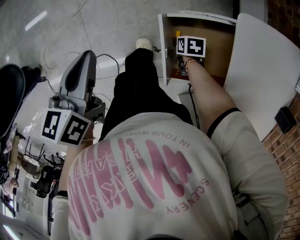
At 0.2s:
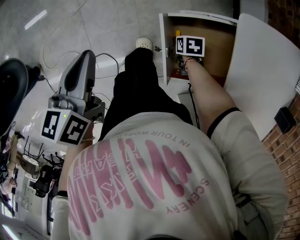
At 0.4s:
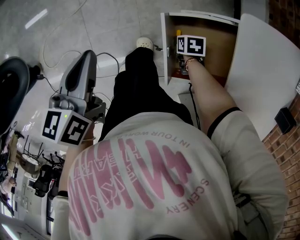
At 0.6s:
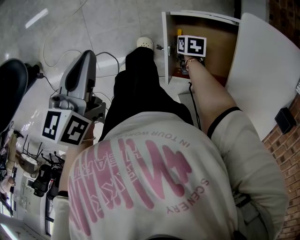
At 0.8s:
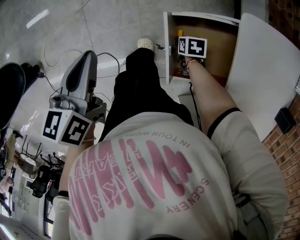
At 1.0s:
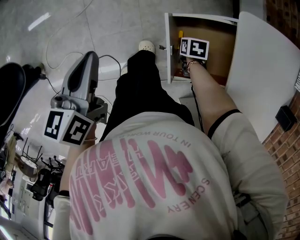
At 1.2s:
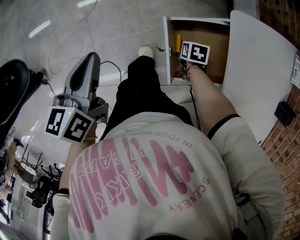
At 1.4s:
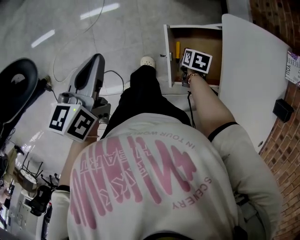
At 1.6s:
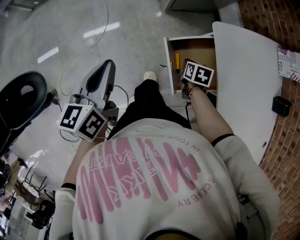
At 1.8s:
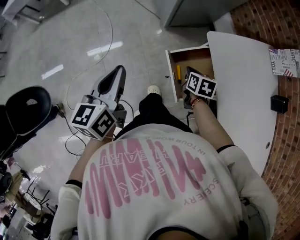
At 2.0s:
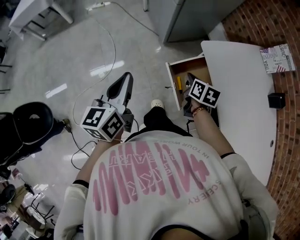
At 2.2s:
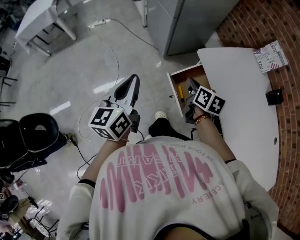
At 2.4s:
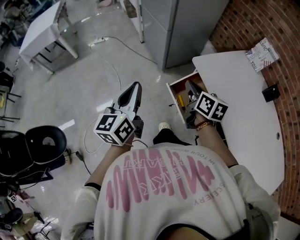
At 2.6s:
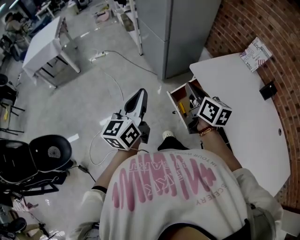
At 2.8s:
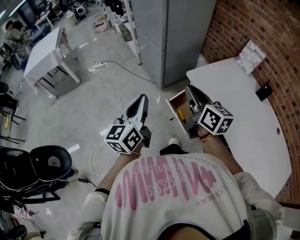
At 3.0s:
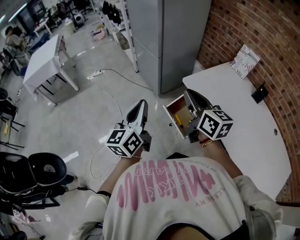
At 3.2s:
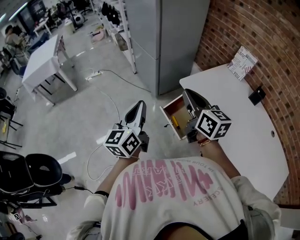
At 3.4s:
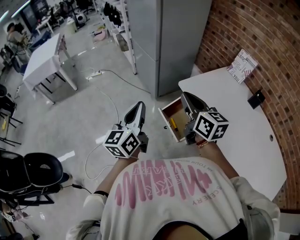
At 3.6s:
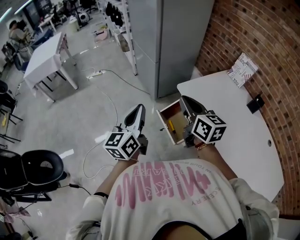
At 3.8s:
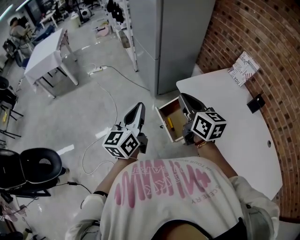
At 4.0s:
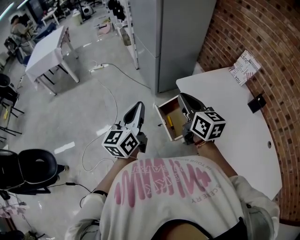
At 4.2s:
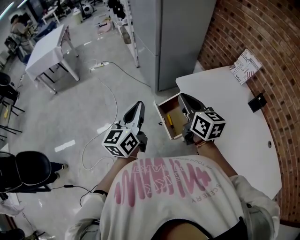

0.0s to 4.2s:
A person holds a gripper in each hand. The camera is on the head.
0.0s to 1.4s: Both grippers travel together upward, approximately 10 cm.
1.4s to 2.8s: The right gripper heads upward, covering approximately 50 cm, and points its fingers some 70 degrees further upward. The left gripper heads upward, covering roughly 20 cm, and changes its angle by approximately 30 degrees.
2.8s to 4.2s: The grippers both shift to the right by approximately 5 cm.

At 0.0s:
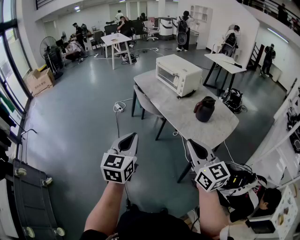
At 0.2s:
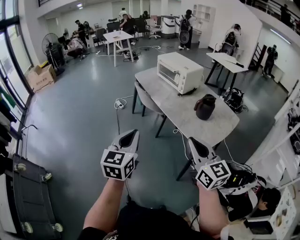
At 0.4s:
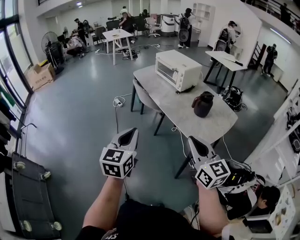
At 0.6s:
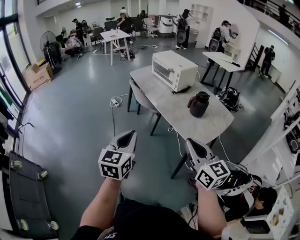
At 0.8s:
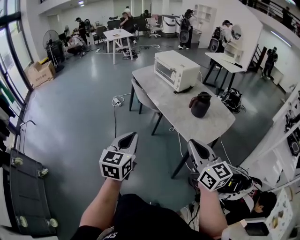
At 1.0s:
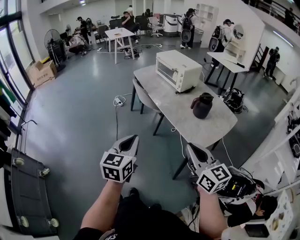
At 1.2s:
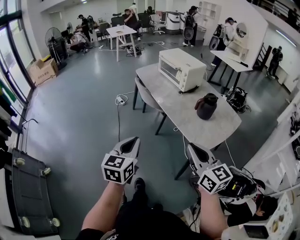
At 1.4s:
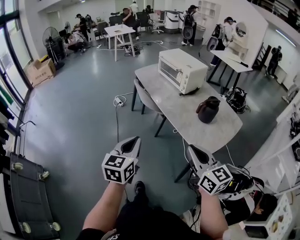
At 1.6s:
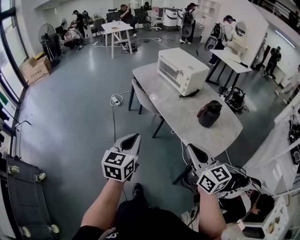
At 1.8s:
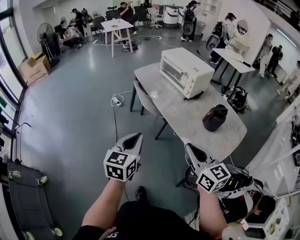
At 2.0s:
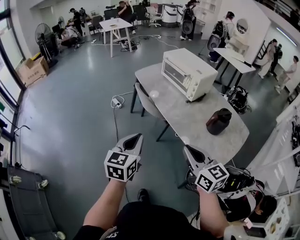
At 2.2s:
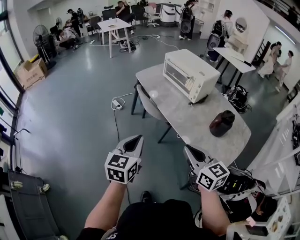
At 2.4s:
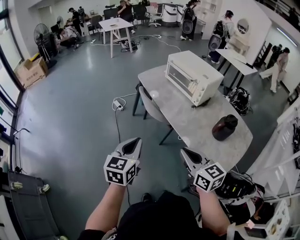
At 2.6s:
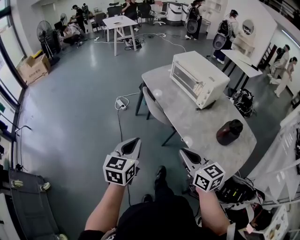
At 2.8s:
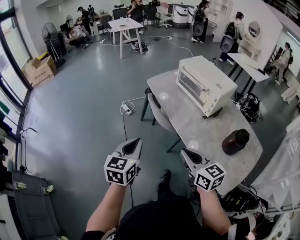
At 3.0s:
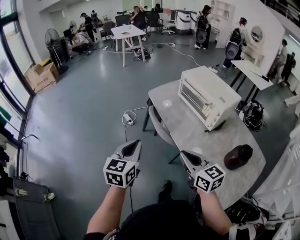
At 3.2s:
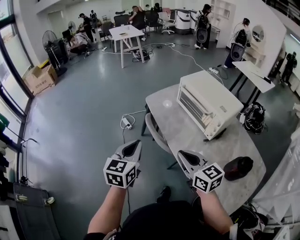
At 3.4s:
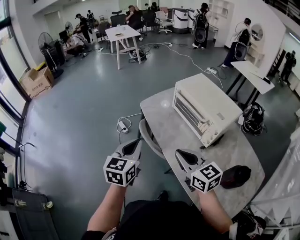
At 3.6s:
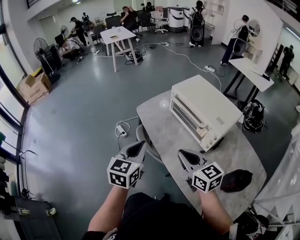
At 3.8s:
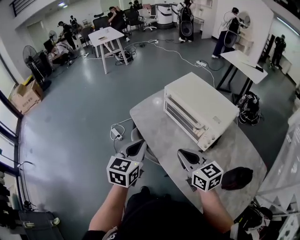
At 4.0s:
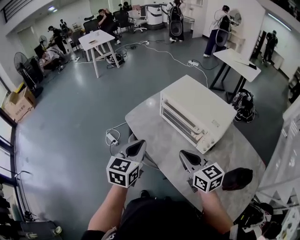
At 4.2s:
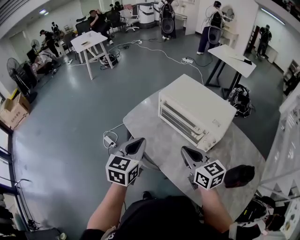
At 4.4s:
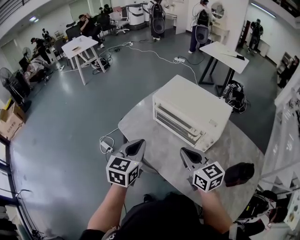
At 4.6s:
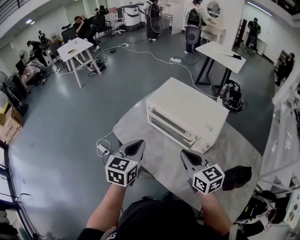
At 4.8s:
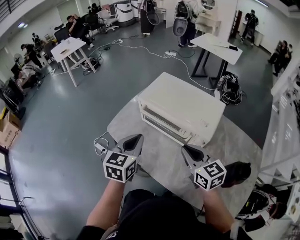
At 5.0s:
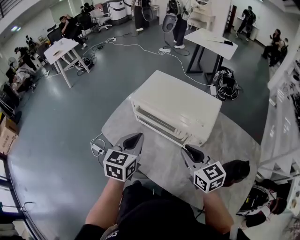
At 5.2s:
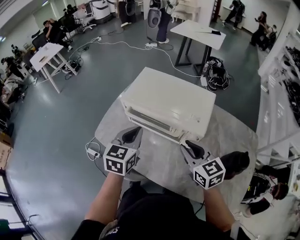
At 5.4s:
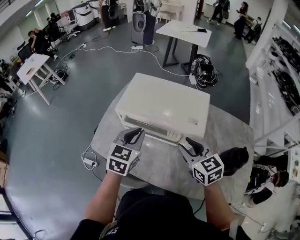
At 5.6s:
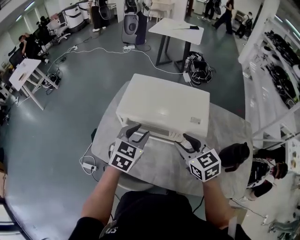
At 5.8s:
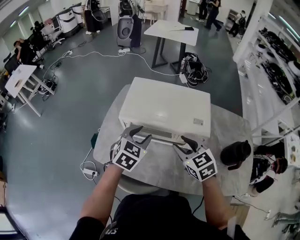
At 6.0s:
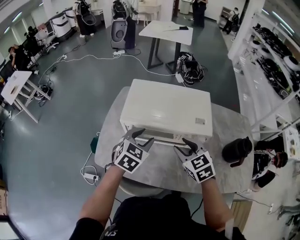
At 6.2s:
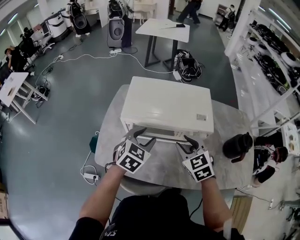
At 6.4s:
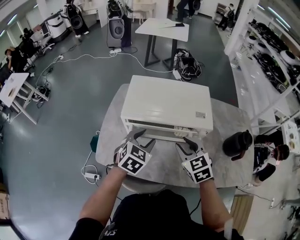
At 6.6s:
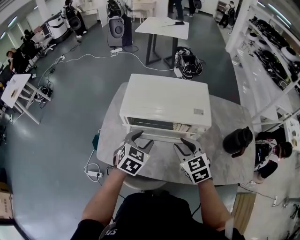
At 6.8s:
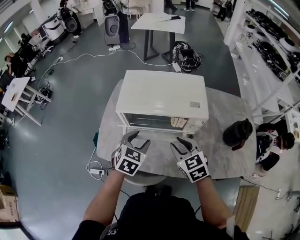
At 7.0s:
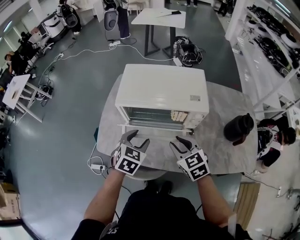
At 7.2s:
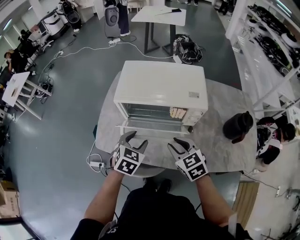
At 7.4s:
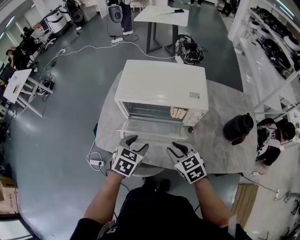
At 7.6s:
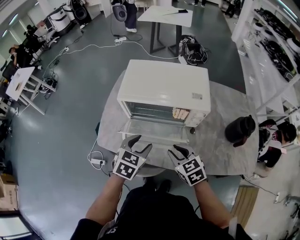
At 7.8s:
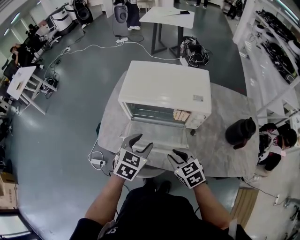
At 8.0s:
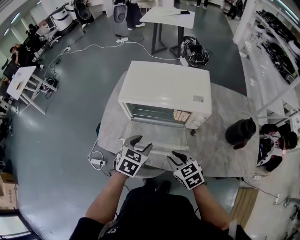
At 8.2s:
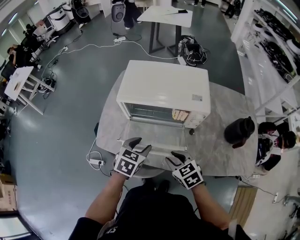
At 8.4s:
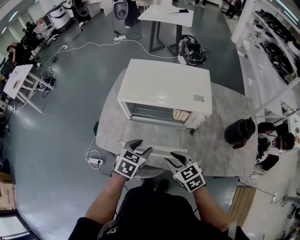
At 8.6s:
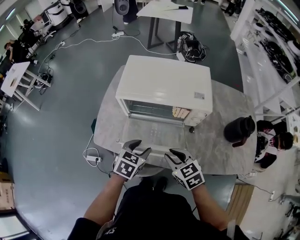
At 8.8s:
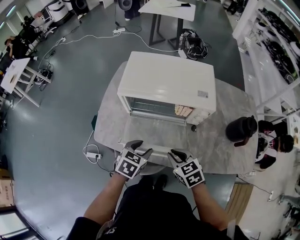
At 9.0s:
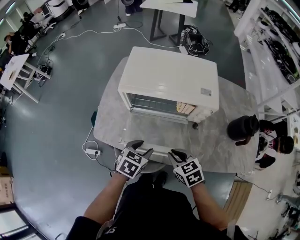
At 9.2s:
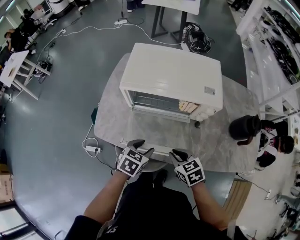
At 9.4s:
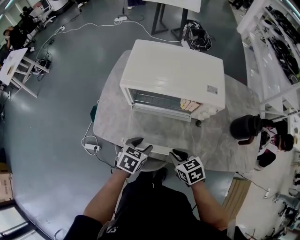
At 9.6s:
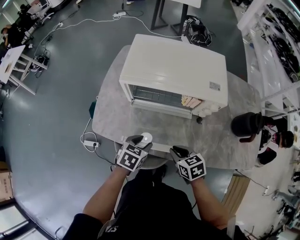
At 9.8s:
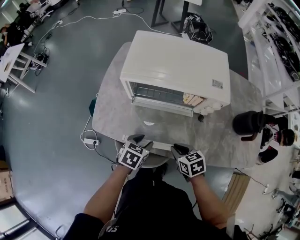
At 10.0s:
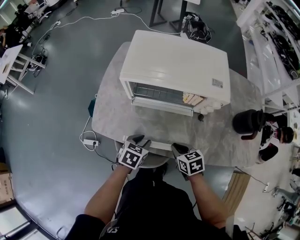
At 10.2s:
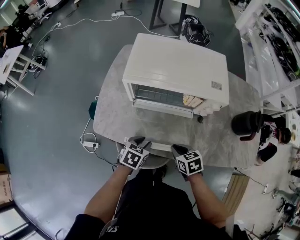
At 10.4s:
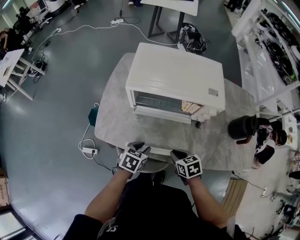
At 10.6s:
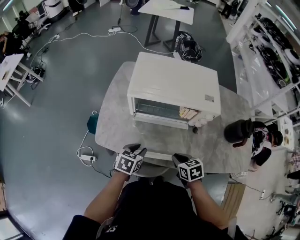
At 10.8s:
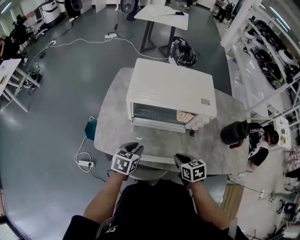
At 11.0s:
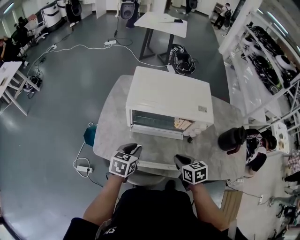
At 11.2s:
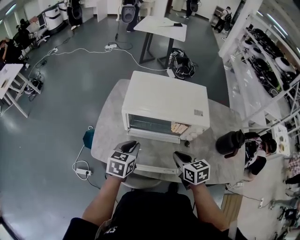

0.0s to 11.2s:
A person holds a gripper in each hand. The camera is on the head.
0.0s to 1.6s: The right gripper goes some 10 cm forward. The left gripper goes about 10 cm forward and downward.
1.6s to 3.2s: Both grippers move forward, some 40 cm.
3.2s to 4.8s: The right gripper ends up some 25 cm from where it was, and changes its angle by roughly 30 degrees, while the left gripper changes place by approximately 30 cm, and turns by approximately 30 degrees.
4.8s to 6.4s: The right gripper shifts by about 10 cm, turns by roughly 40 degrees, and opens its fingers, while the left gripper moves some 15 cm, changes its angle by roughly 50 degrees, and opens its fingers.
6.4s to 8.0s: The right gripper heads backward and downward, covering approximately 15 cm. Meanwhile the left gripper heads backward, covering about 10 cm.
8.0s to 9.6s: Both grippers move downward, roughly 10 cm.
9.6s to 11.2s: The two grippers go roughly 15 cm upward and forward. The left gripper changes its angle by about 20 degrees, and closes up.

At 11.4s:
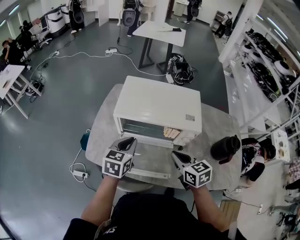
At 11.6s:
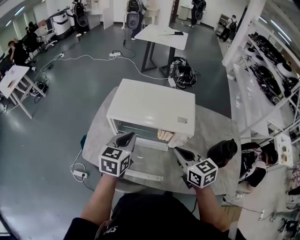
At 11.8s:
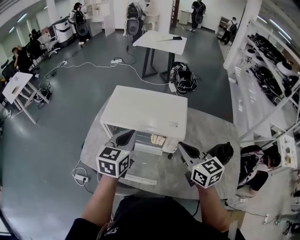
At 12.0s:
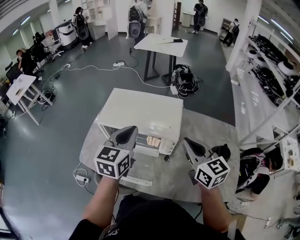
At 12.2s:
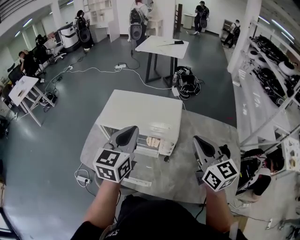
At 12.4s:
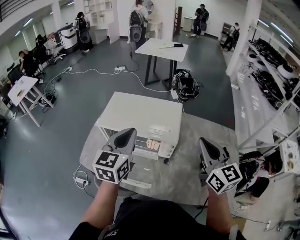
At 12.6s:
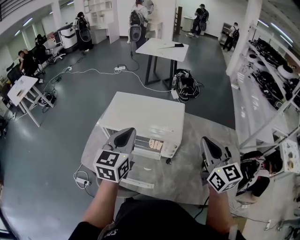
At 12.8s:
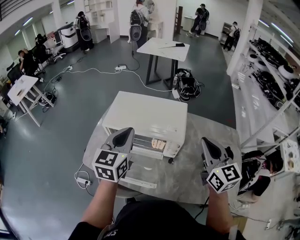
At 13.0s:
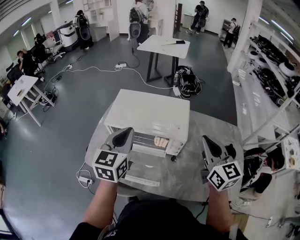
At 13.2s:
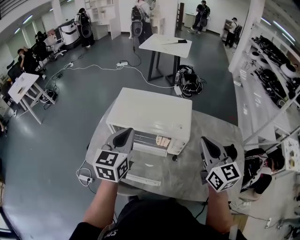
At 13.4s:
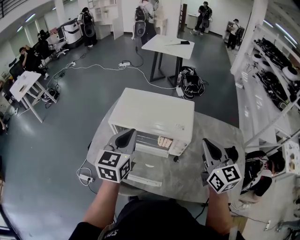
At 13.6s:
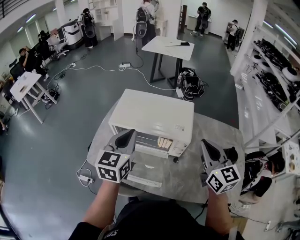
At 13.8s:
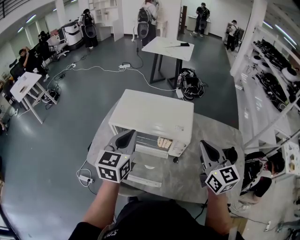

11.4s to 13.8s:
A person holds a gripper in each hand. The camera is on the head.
11.4s to 12.6s: The grippers both shift upward and to the right by approximately 25 cm. The left gripper rotates roughly 20 degrees. Meanwhile the right gripper rotates about 30 degrees.
12.6s to 13.8s: The right gripper changes place by some 5 cm.

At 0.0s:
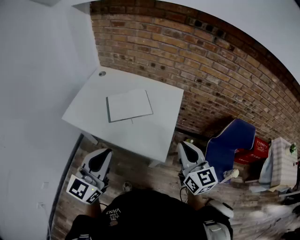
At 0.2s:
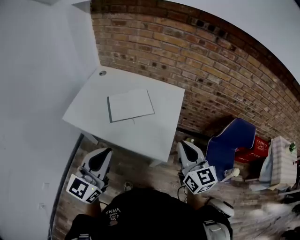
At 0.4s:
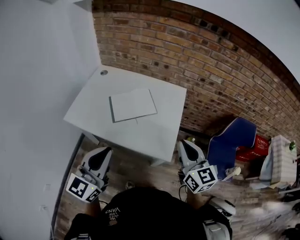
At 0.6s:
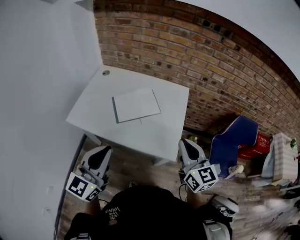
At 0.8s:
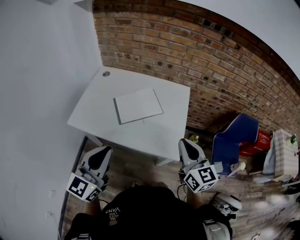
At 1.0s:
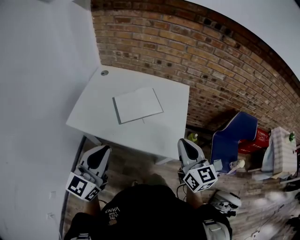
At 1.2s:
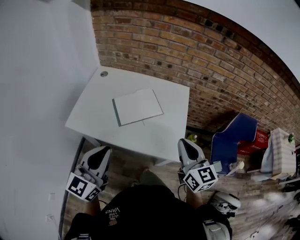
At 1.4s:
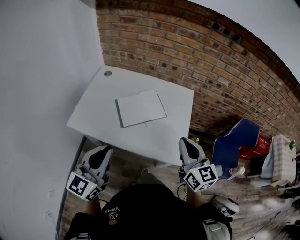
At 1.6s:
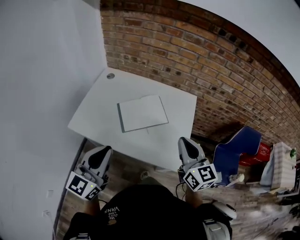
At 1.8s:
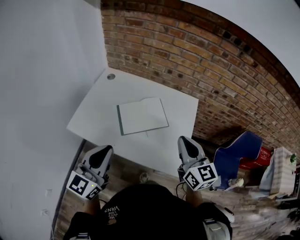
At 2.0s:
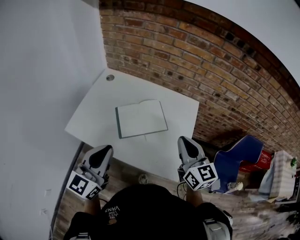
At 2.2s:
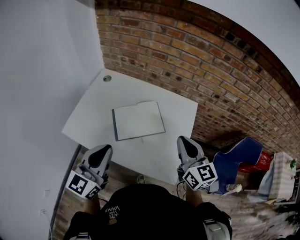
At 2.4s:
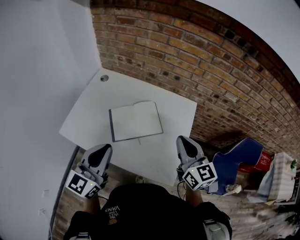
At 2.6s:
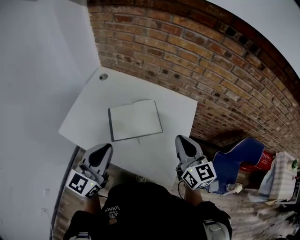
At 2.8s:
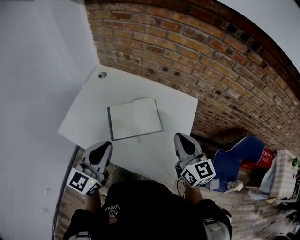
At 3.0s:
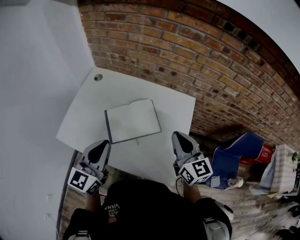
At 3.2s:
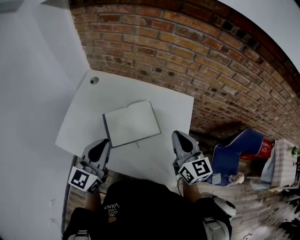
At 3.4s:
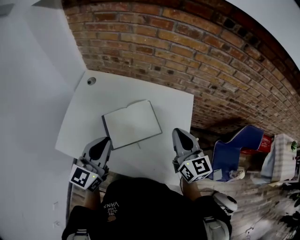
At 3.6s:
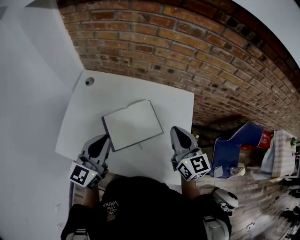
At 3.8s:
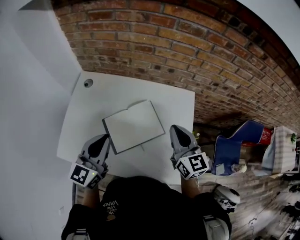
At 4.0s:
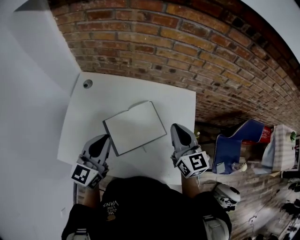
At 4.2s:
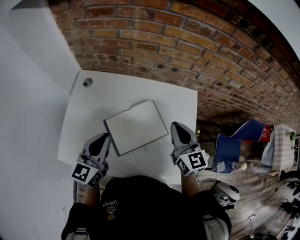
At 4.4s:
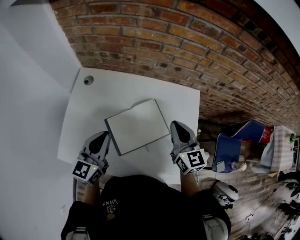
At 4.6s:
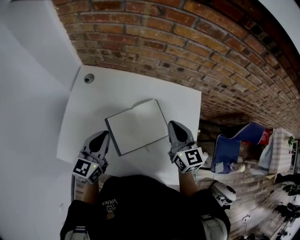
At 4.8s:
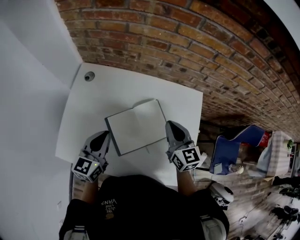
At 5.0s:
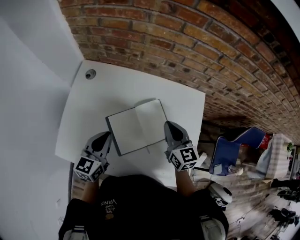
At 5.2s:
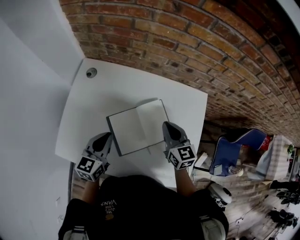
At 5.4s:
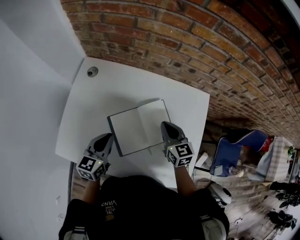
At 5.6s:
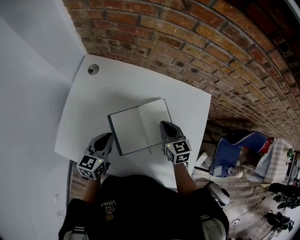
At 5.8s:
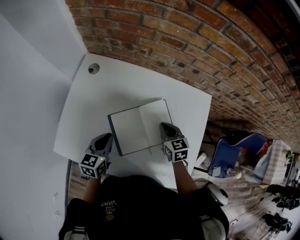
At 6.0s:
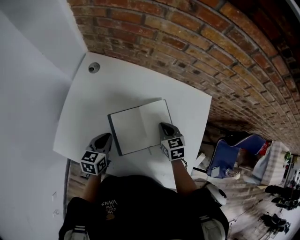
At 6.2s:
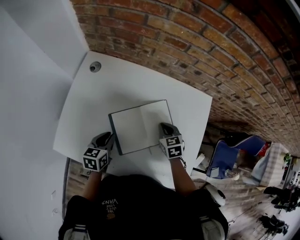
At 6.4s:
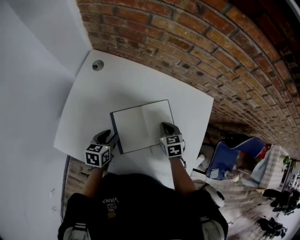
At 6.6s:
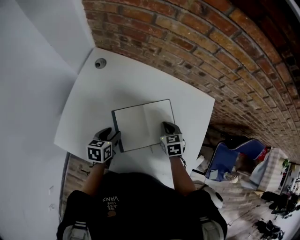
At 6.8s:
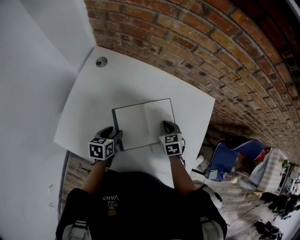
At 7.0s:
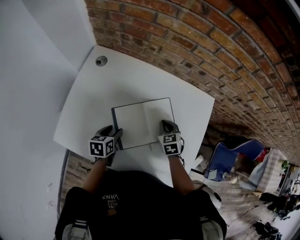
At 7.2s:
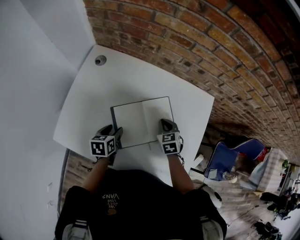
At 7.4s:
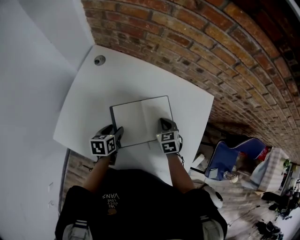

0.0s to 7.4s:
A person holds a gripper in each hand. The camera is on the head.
0.0s to 1.4s: Both grippers travel together to the left and forward, about 15 cm.
1.4s to 3.0s: Both grippers travel together forward, approximately 20 cm.
3.0s to 4.4s: The two grippers go about 15 cm forward, to the left and downward.
4.4s to 6.0s: The two grippers go some 20 cm downward. The left gripper turns by about 30 degrees, while the right gripper tilts its fingers some 30 degrees downward.
6.0s to 7.4s: The left gripper opens its fingers.
